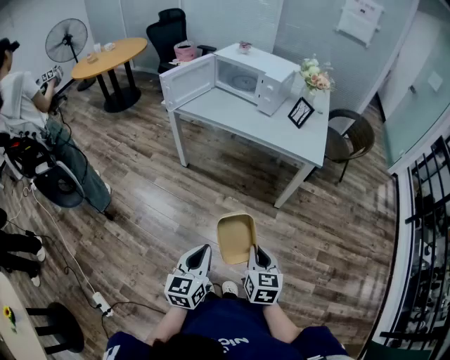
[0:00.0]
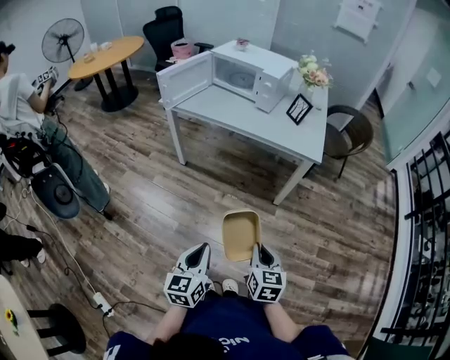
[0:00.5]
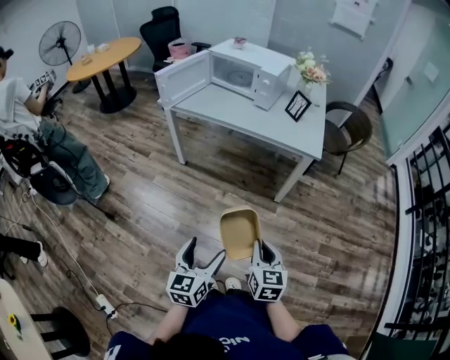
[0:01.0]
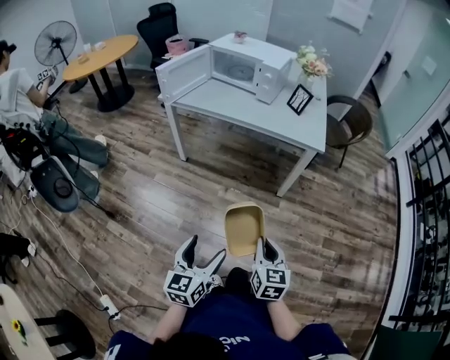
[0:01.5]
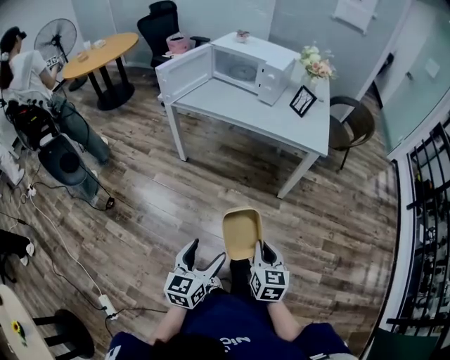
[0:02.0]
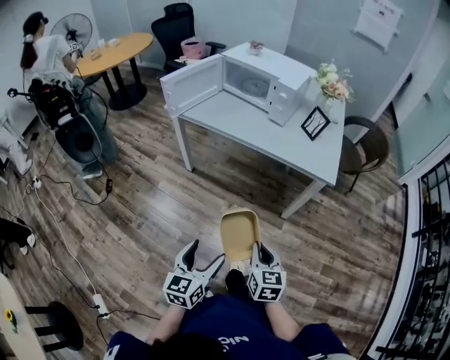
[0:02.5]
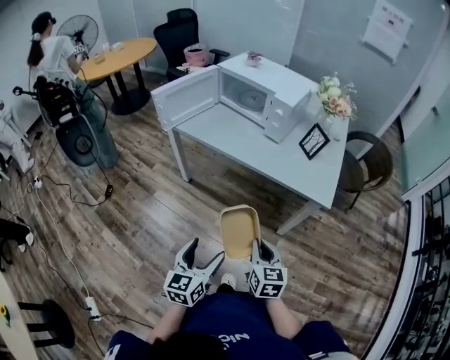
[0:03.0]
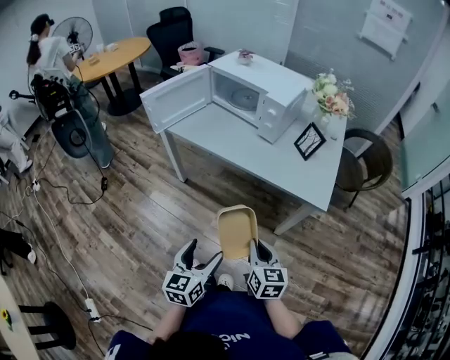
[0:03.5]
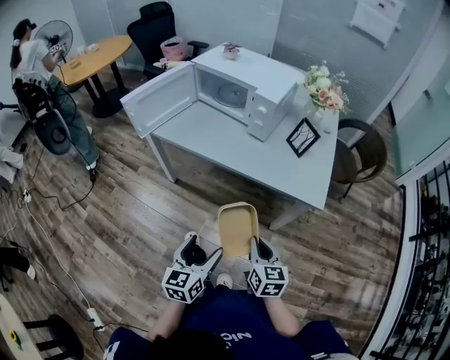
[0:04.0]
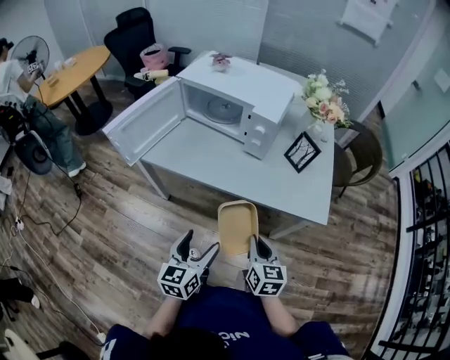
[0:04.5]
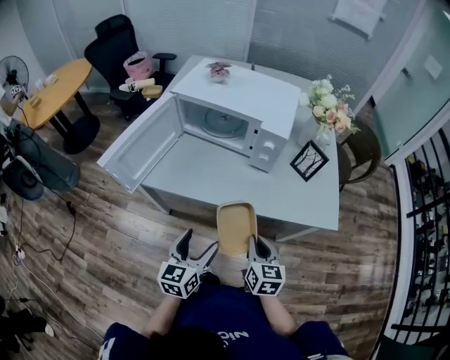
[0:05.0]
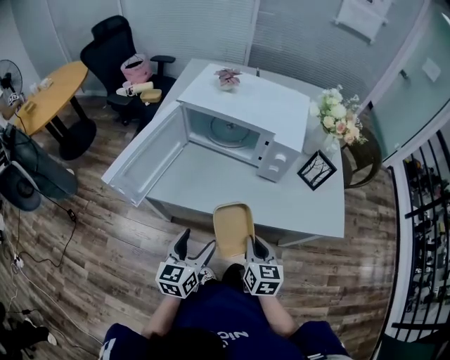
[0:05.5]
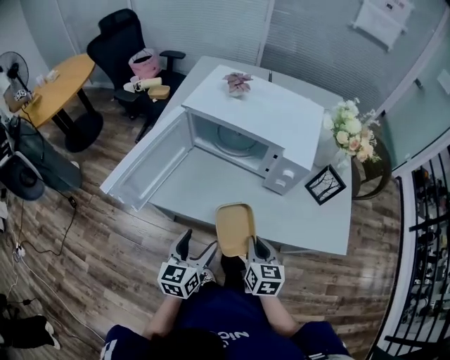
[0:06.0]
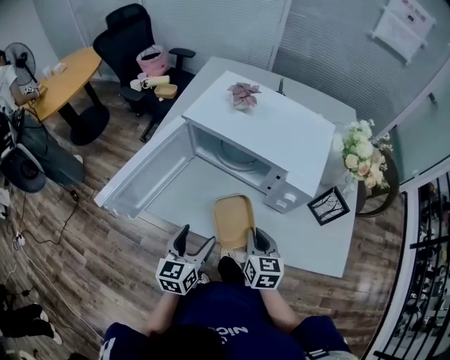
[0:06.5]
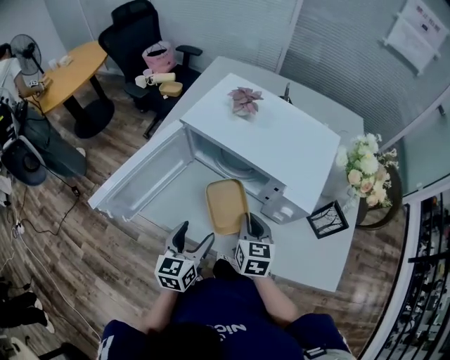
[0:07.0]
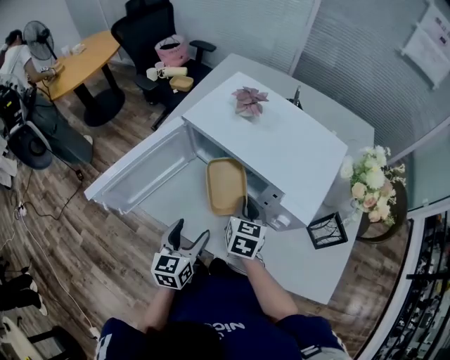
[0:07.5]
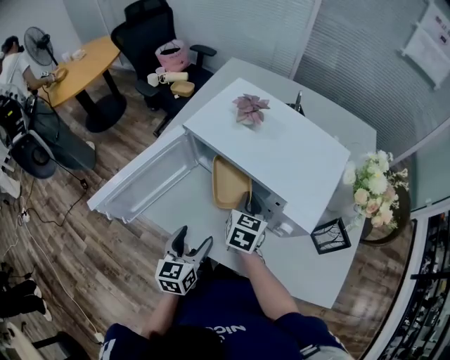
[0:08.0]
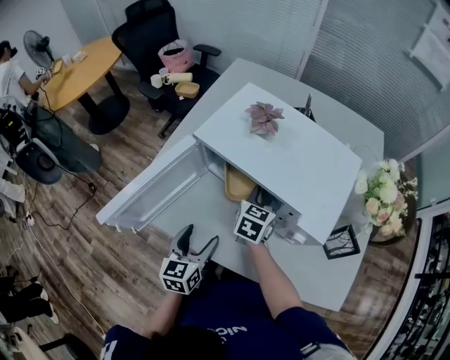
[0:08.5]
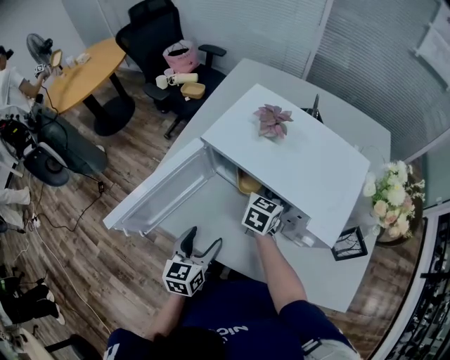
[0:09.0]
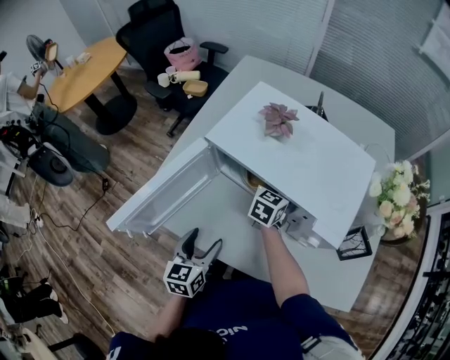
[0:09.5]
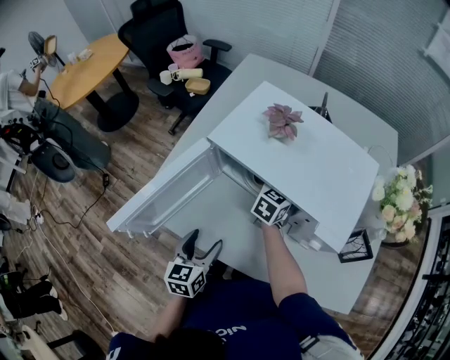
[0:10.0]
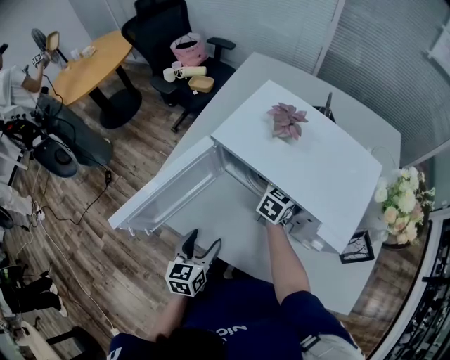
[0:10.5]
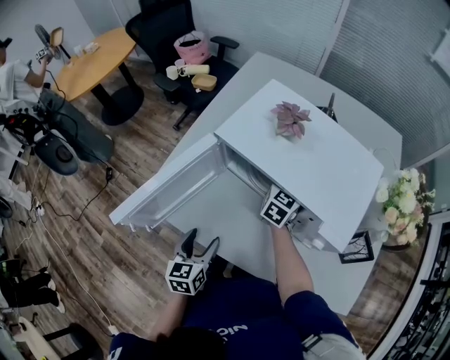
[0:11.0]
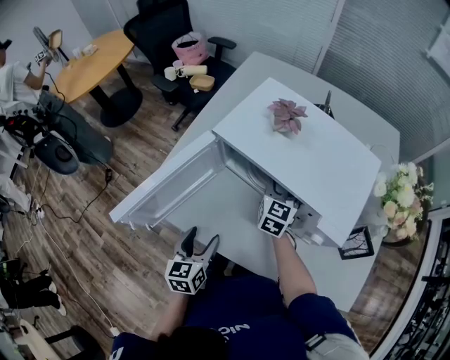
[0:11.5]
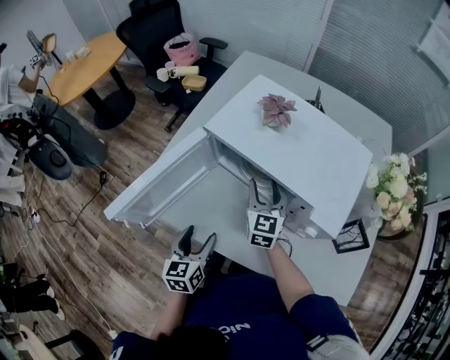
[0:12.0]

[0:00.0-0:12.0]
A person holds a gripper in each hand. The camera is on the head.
0:00.0 to 0:02.0: The left gripper opens up.
0:02.0 to 0:04.0: Both grippers travel together forward, approximately 30 cm.
0:04.0 to 0:06.0: The grippers both shift forward and to the left by about 30 cm.
0:06.0 to 0:08.0: The left gripper travels forward by some 10 cm. Meanwhile the right gripper moves forward, about 30 cm.
0:08.0 to 0:10.0: The right gripper moves forward, approximately 10 cm; the left gripper shifts roughly 5 cm to the left.
0:10.0 to 0:12.0: The right gripper goes about 10 cm backward, upward and to the left, swivels some 30 degrees, and opens.

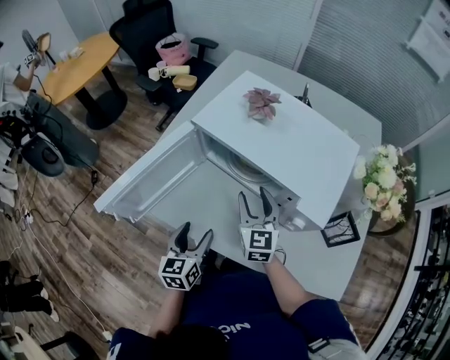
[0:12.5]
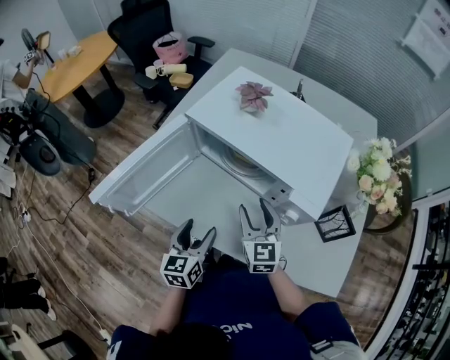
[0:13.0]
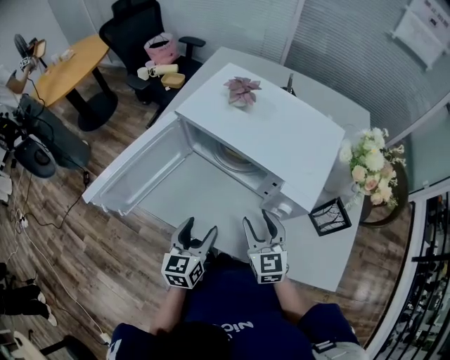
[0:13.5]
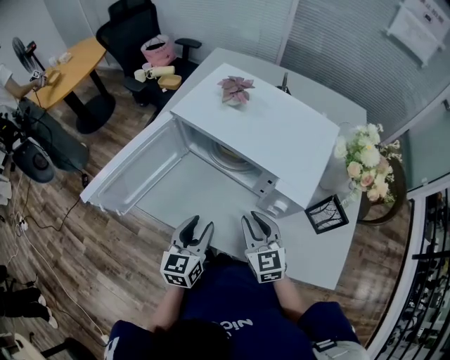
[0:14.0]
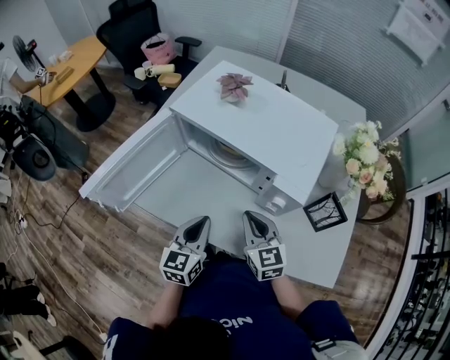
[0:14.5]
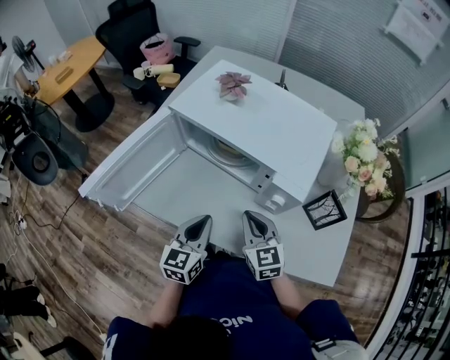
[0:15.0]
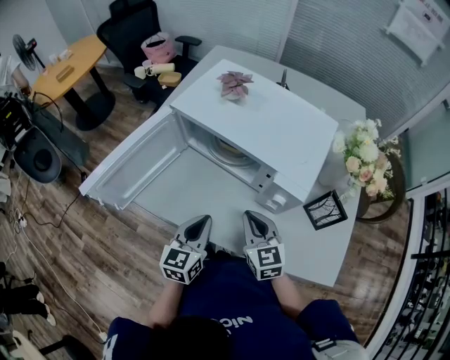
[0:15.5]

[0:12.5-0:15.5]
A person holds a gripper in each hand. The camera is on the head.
0:12.5 to 0:14.0: The left gripper travels to the right by some 5 cm. The right gripper heads backward and to the right, covering about 10 cm, and closes.
0:14.0 to 0:15.5: The right gripper closes up; the left gripper closes up.

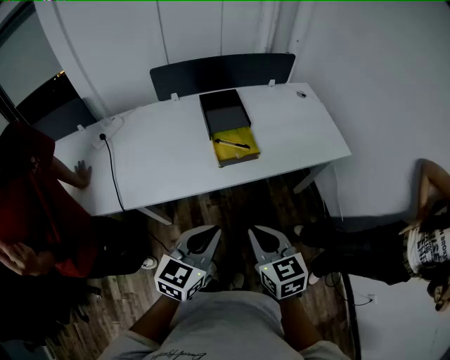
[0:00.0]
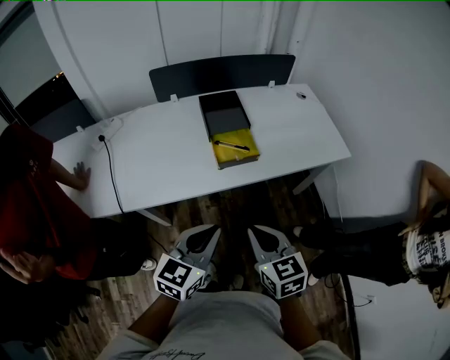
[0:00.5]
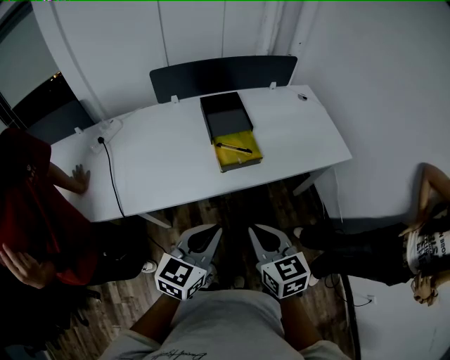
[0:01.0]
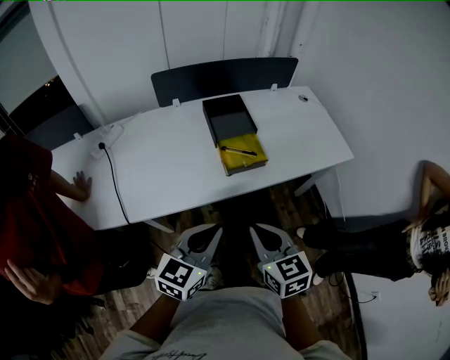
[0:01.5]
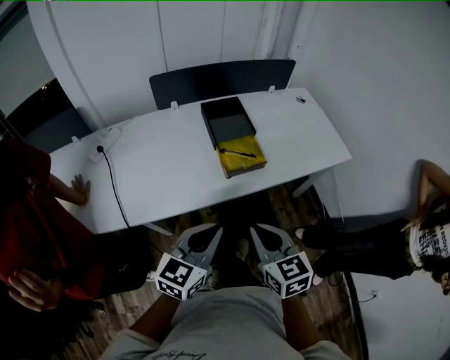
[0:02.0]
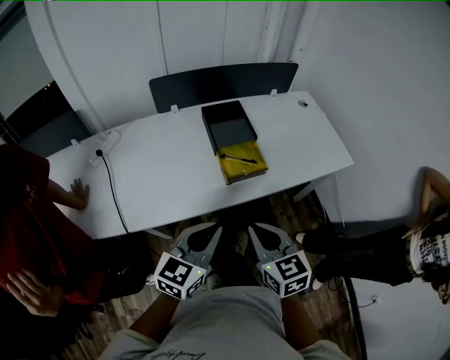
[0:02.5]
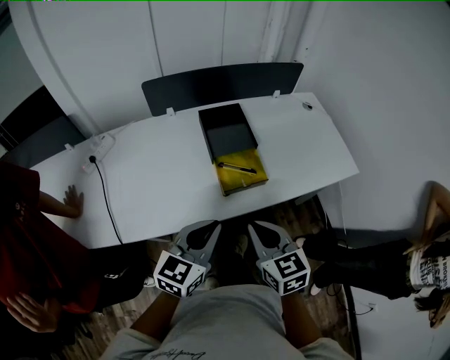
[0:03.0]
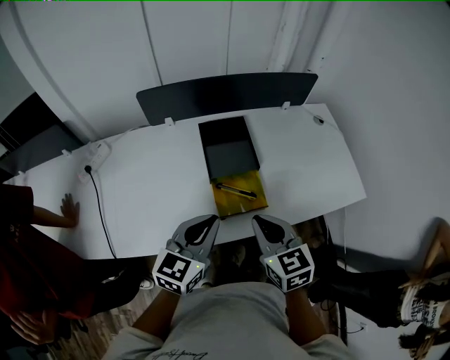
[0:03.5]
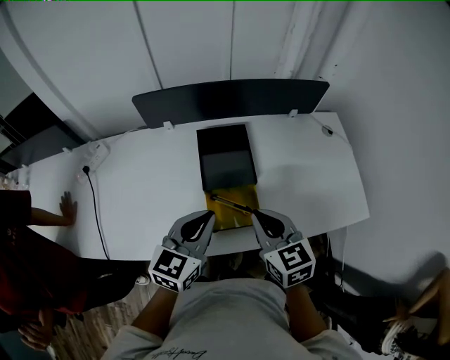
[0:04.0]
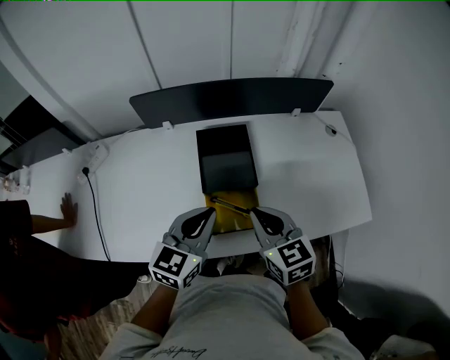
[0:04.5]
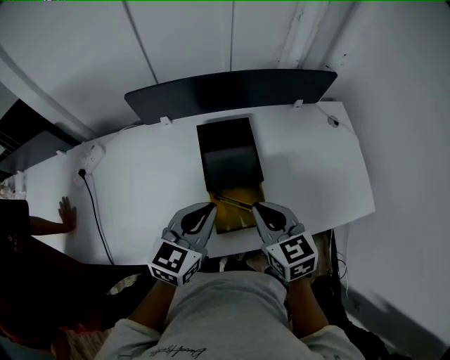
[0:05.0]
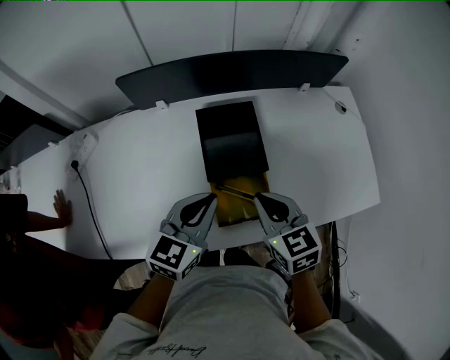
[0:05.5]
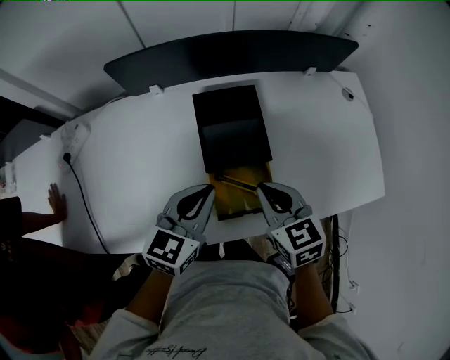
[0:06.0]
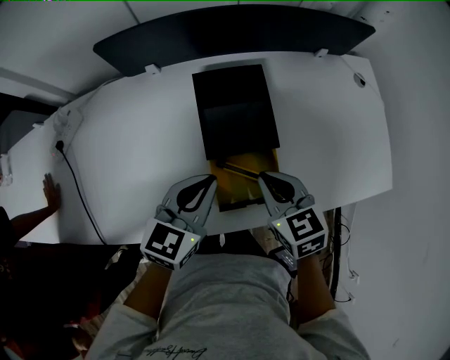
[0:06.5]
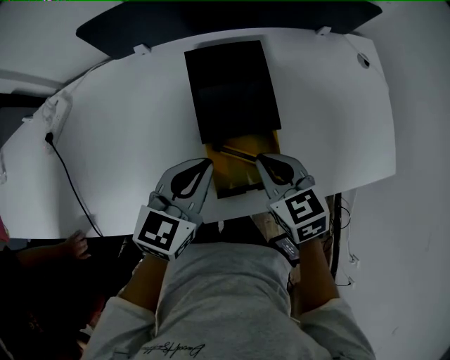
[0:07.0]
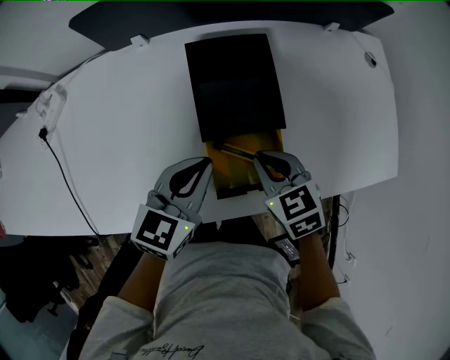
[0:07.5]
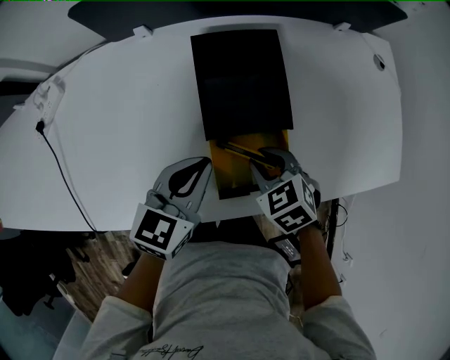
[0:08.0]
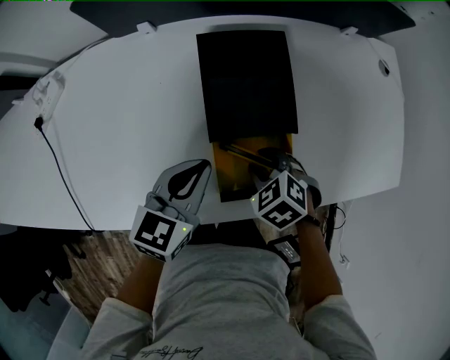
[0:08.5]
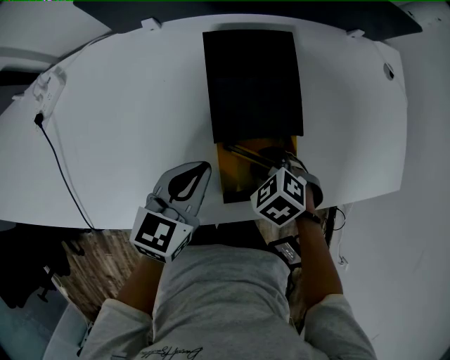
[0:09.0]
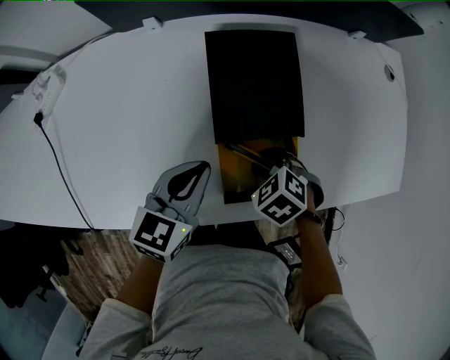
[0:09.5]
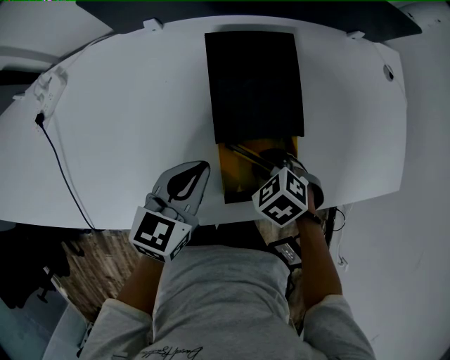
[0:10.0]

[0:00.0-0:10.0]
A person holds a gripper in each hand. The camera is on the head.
0:00.0 to 0:02.0: The grippers both shift to the left by some 5 cm.
0:02.0 to 0:04.0: Both grippers travel together forward, about 30 cm.
0:04.0 to 0:06.0: The right gripper travels downward and forward by roughly 10 cm. The left gripper moves forward and downward, roughly 10 cm.
0:06.0 to 0:08.0: The right gripper is displaced downward by roughly 15 cm, turns by roughly 30 degrees, and opens its fingers; the left gripper moves downward, approximately 10 cm.
0:08.0 to 0:10.0: The grippers make only small movements.

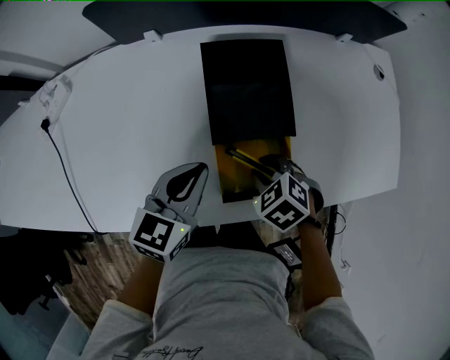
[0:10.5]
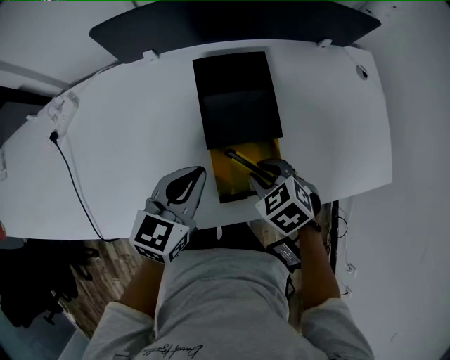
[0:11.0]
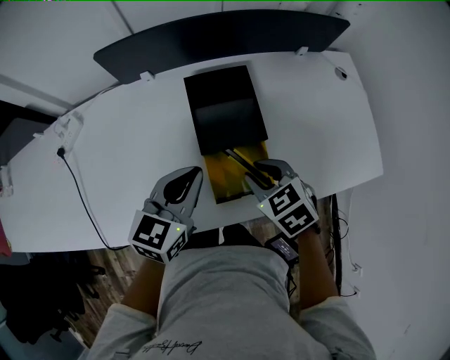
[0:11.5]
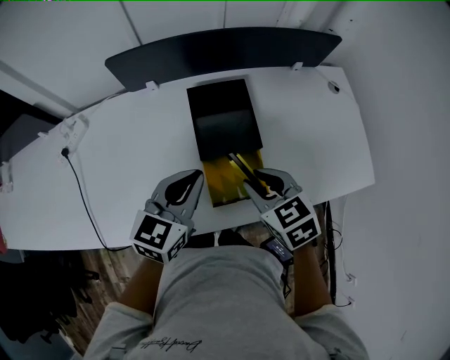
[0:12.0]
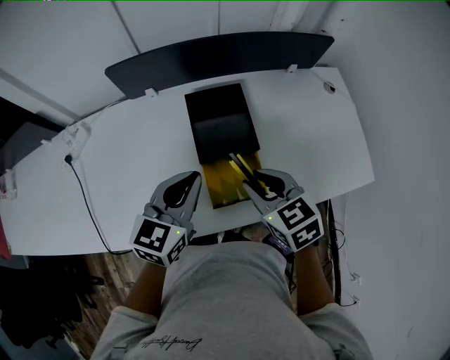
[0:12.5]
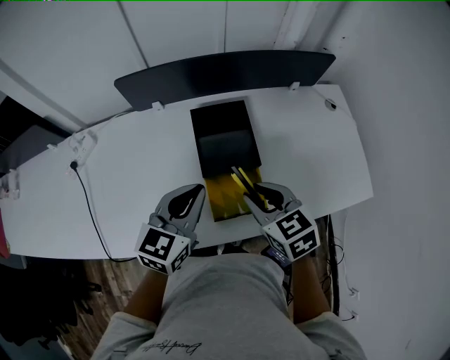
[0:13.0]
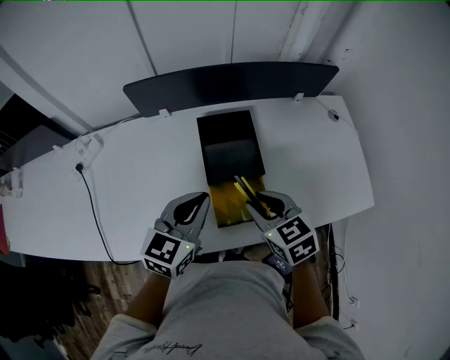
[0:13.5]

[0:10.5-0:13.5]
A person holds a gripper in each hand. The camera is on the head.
0:10.5 to 0:12.0: The right gripper shifts approximately 15 cm upward, and changes its angle by some 30 degrees. The left gripper goes about 10 cm upward.
0:12.0 to 0:13.5: The grippers move only a little.
